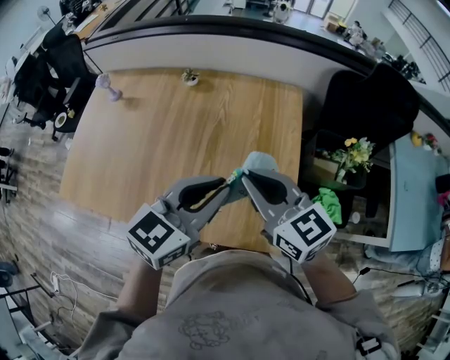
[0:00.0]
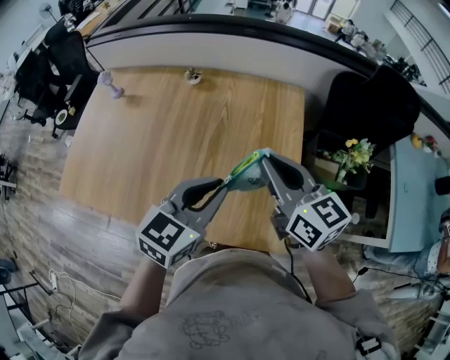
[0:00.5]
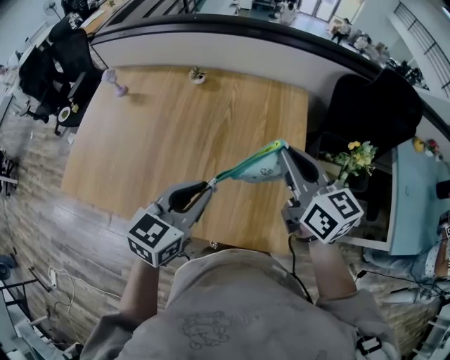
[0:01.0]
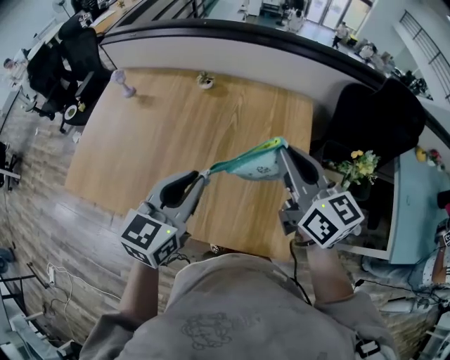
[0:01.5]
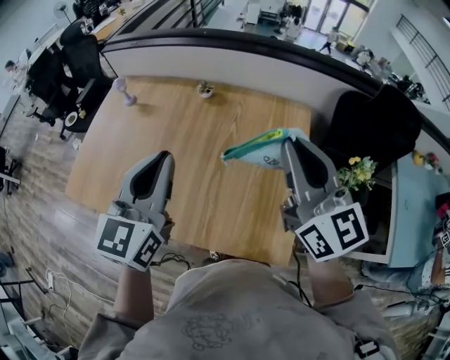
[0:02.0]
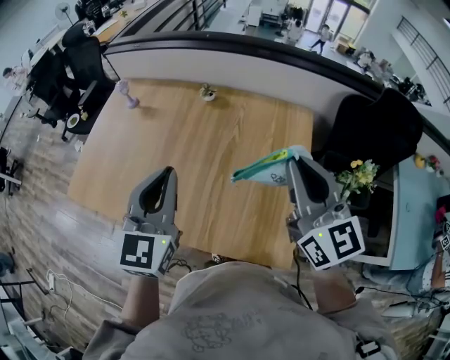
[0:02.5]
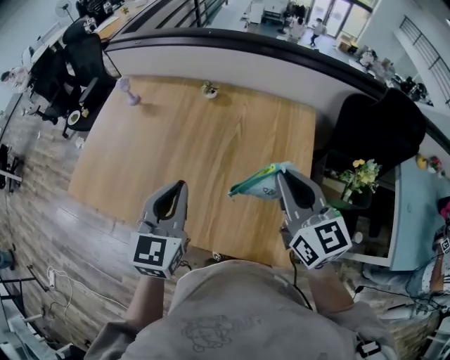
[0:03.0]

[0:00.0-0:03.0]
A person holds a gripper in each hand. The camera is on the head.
0:00.0 to 0:01.5: The right gripper moves forward, about 5 cm; the left gripper is displaced to the left by about 10 cm.
0:01.5 to 0:03.0: The right gripper goes upward and returns, approximately 10 cm each way. The left gripper travels to the left by approximately 5 cm, and goes upward and returns, some 10 cm each way.

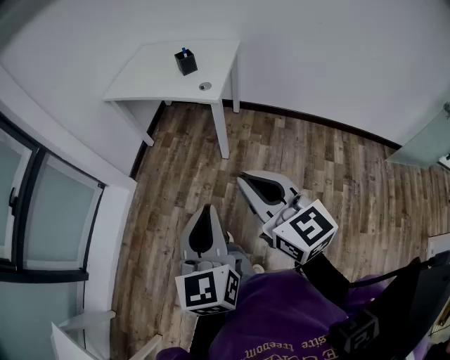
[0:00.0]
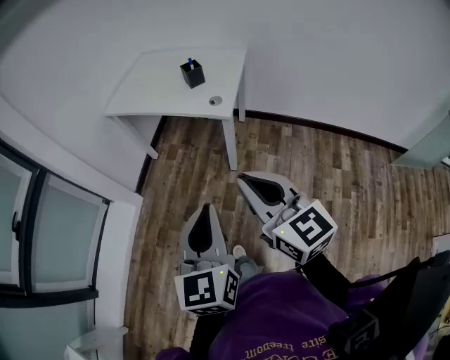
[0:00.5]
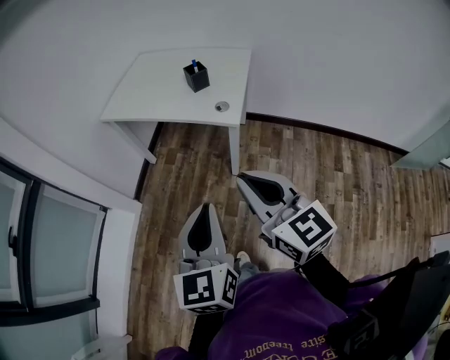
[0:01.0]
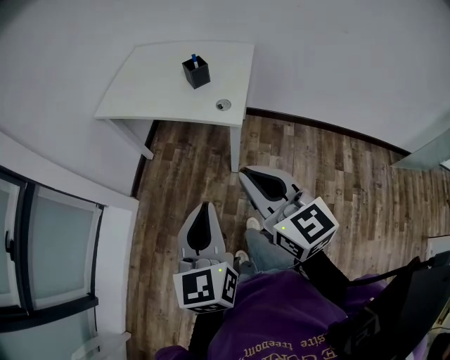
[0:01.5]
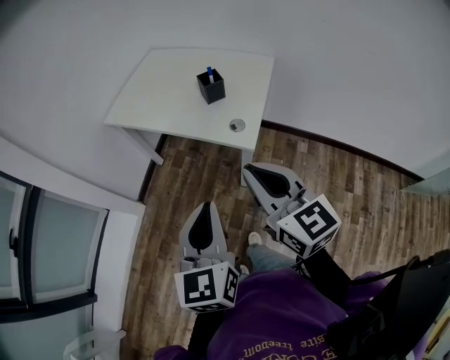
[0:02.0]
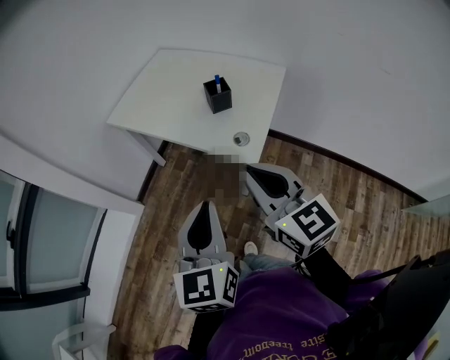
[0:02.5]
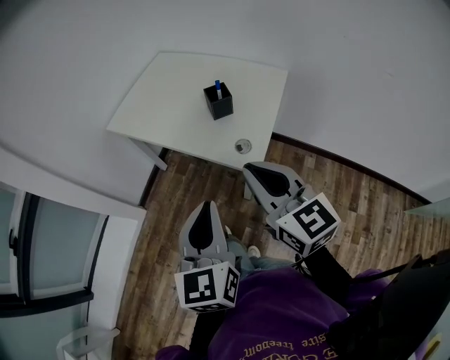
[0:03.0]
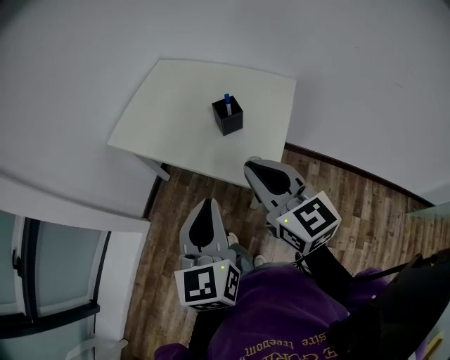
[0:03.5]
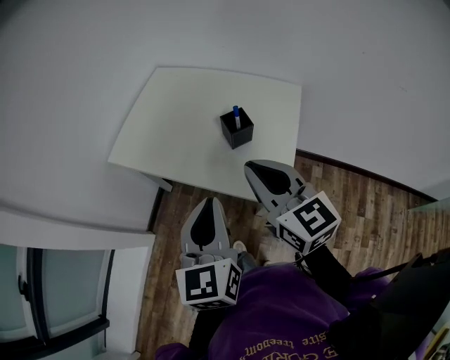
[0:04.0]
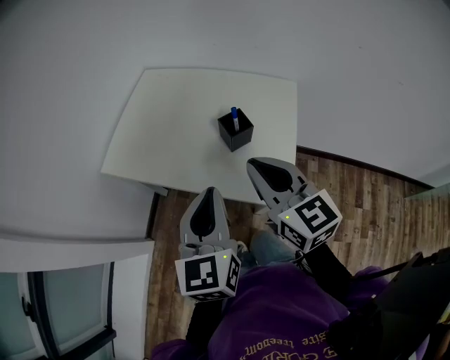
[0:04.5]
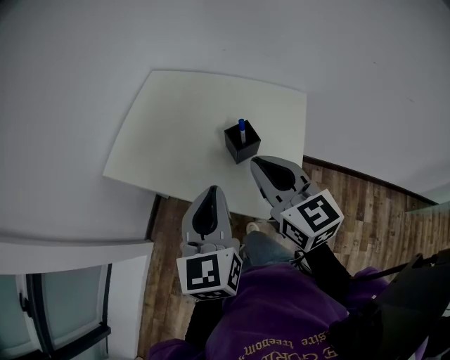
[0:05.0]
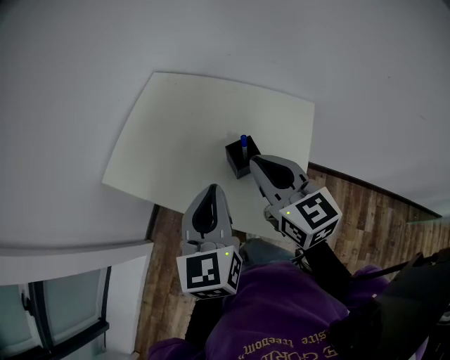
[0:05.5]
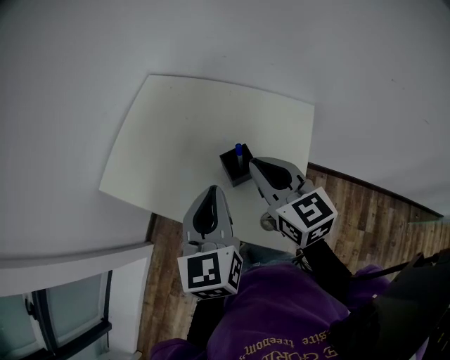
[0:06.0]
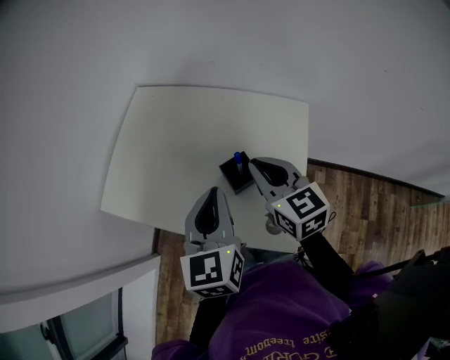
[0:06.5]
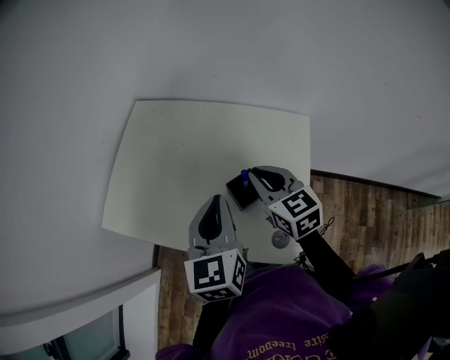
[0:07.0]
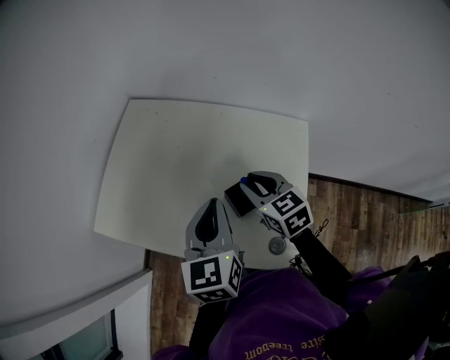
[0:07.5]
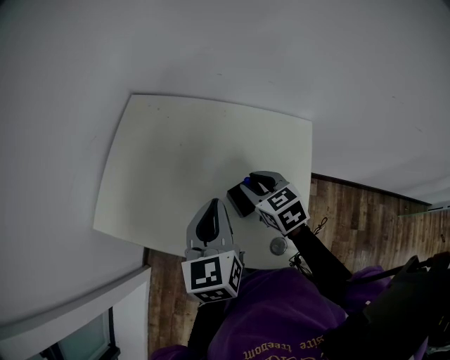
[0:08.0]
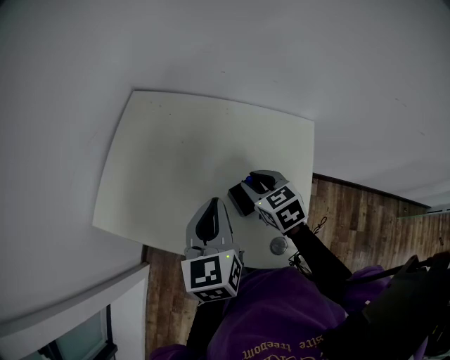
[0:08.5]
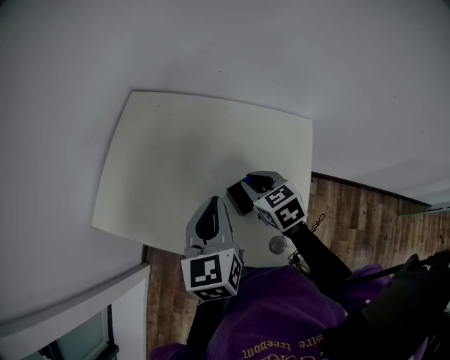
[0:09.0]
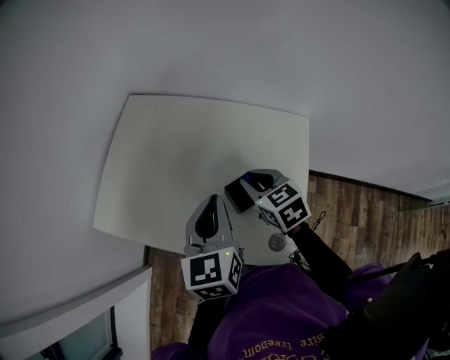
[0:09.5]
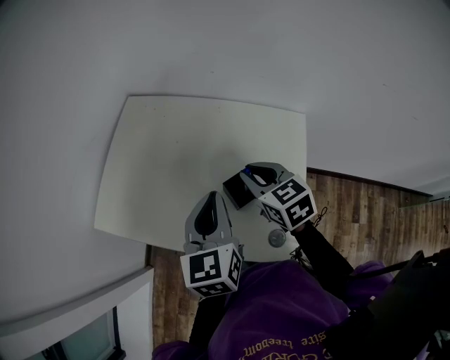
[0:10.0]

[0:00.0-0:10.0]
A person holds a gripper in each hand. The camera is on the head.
0:00.0 to 0:02.0: The grippers both shift forward by roughly 35 cm.
0:02.0 to 0:04.0: Both grippers move forward, roughly 25 cm.
0:04.0 to 0:06.0: Both grippers travel together forward, approximately 20 cm.
0:06.0 to 0:08.0: The left gripper moves forward and downward, approximately 10 cm. Meanwhile the right gripper travels downward and forward by approximately 15 cm, rotates about 30 degrees, and opens up.
0:08.0 to 0:10.0: The right gripper goes about 5 cm upward.

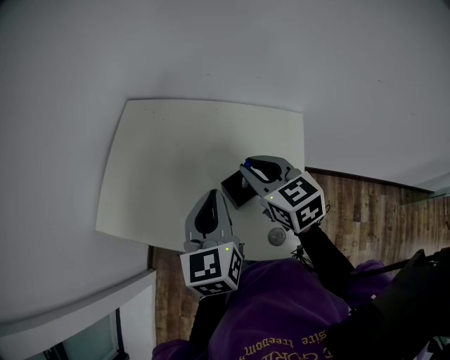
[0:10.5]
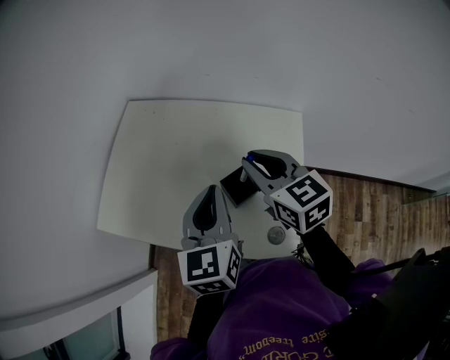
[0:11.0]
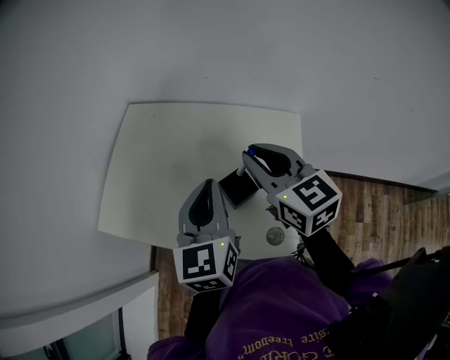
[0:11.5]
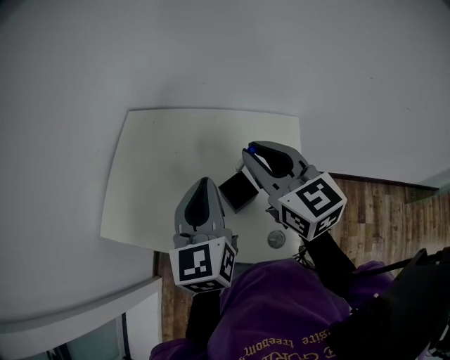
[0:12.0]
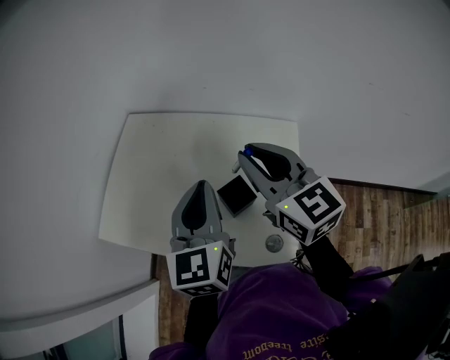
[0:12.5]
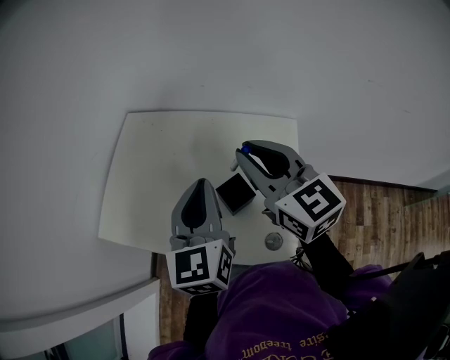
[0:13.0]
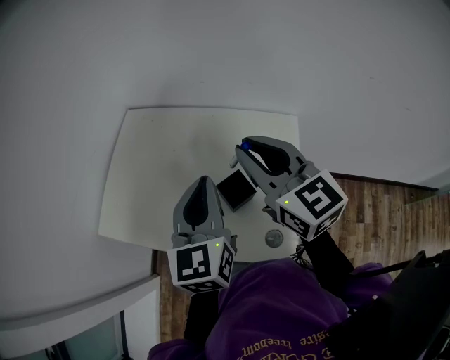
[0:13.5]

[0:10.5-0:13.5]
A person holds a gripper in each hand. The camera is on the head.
0:10.5 to 0:12.0: The right gripper travels upward by approximately 10 cm. The left gripper travels upward by roughly 5 cm.
0:12.0 to 0:13.5: The grippers move only a little.

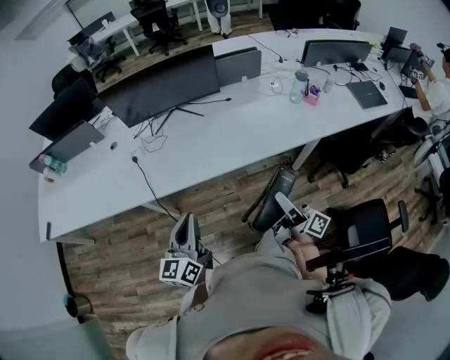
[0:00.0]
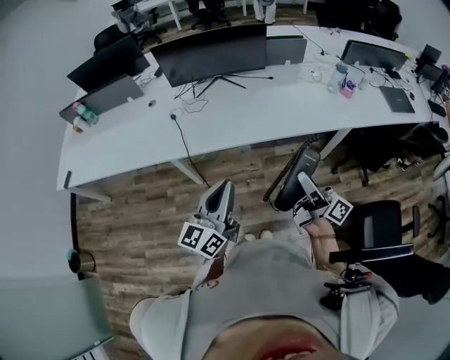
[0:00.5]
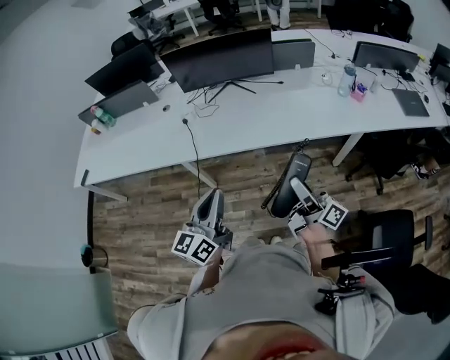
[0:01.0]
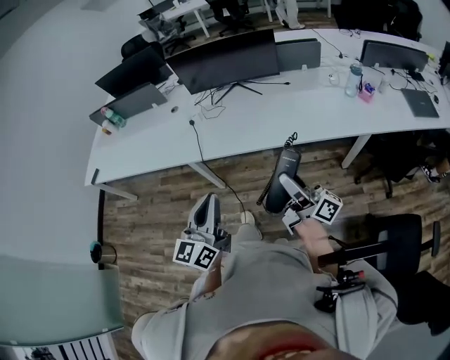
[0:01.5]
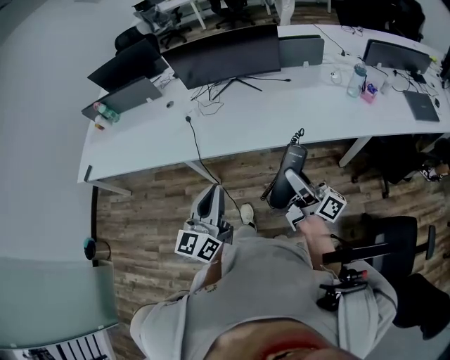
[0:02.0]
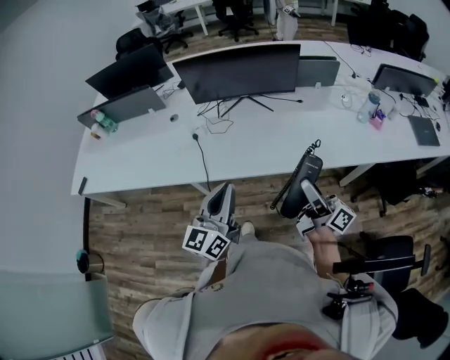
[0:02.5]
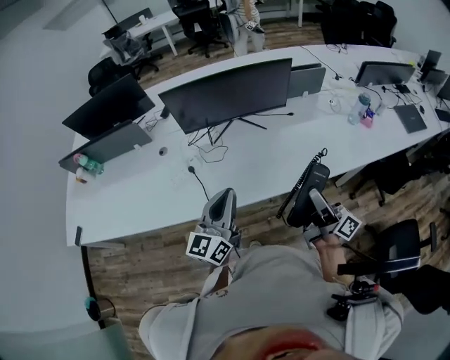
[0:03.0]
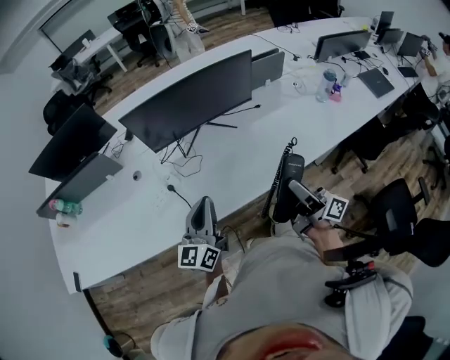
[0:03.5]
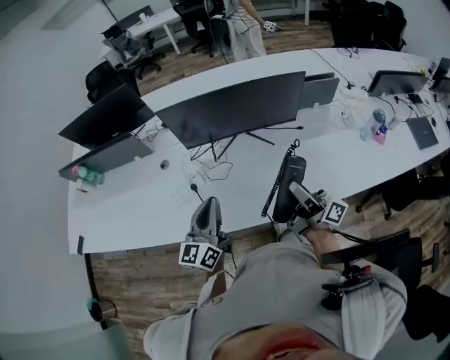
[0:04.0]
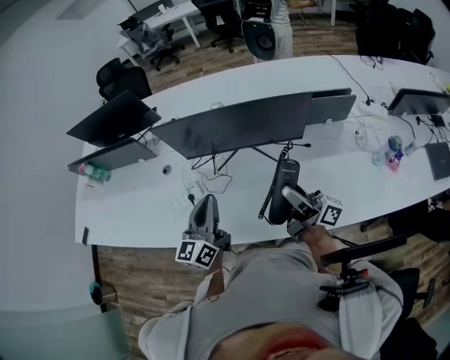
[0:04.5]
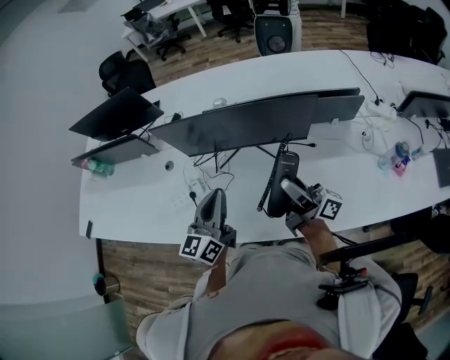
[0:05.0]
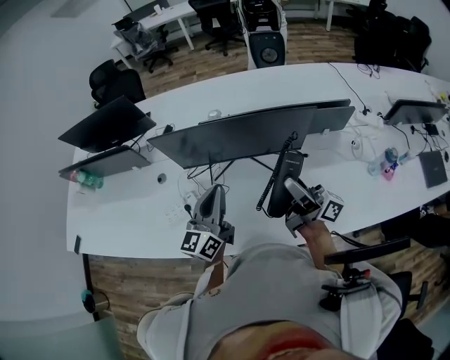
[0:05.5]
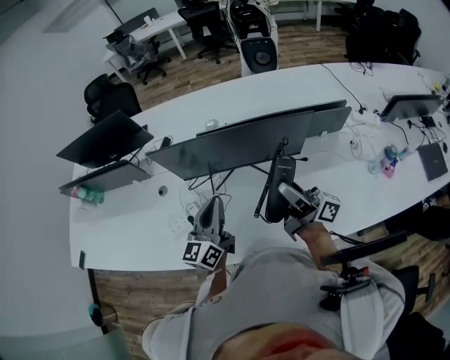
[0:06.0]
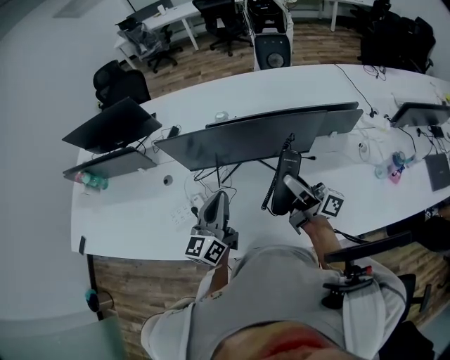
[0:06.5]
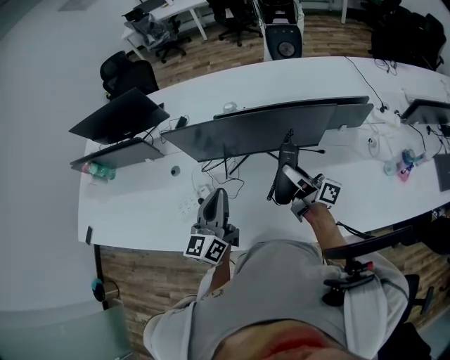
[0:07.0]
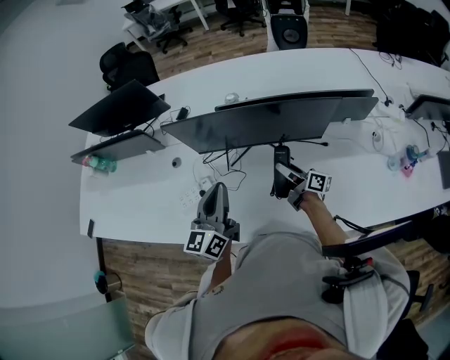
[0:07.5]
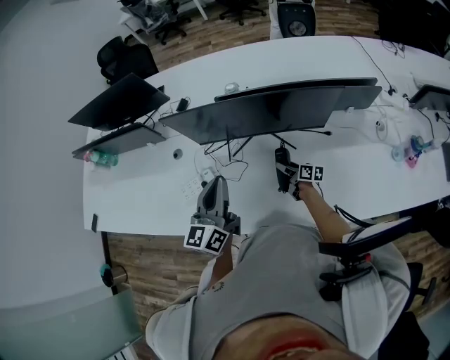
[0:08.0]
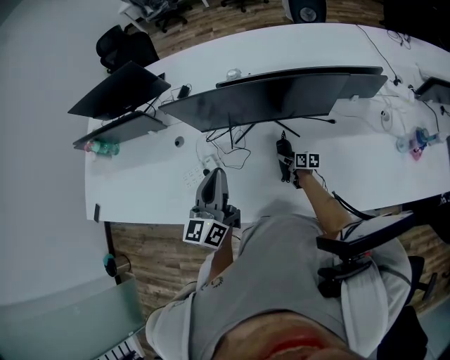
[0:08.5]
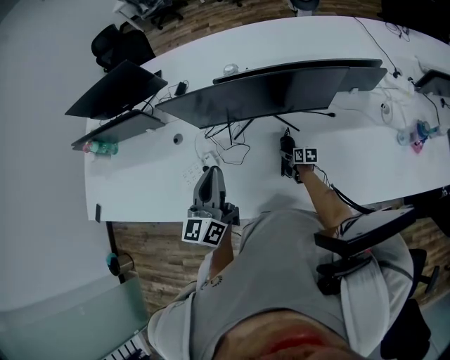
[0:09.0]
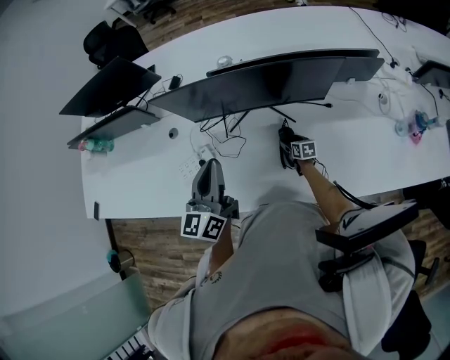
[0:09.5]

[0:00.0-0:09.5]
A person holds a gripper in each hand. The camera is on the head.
0:00.0 to 0:02.0: The left gripper is displaced backward and upward by some 10 cm, while the right gripper shifts approximately 10 cm to the left.
0:02.0 to 0:04.0: The two grippers go some 35 cm forward.
0:04.0 to 0:05.5: The two grippers go about 20 cm forward and to the right.
0:05.5 to 0:07.5: The right gripper heads downward, covering some 25 cm, and points its fingers about 30 degrees further downward.
0:07.5 to 0:09.5: The right gripper goes about 25 cm downward, and angles its fingers downward, by some 50 degrees.

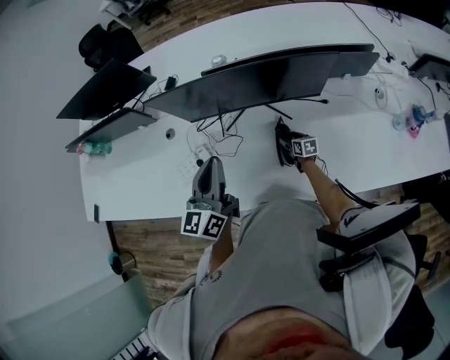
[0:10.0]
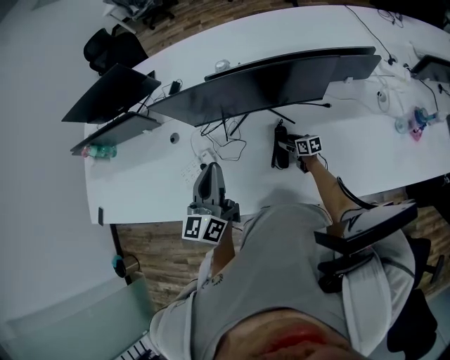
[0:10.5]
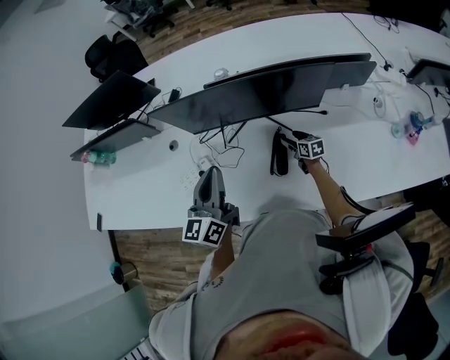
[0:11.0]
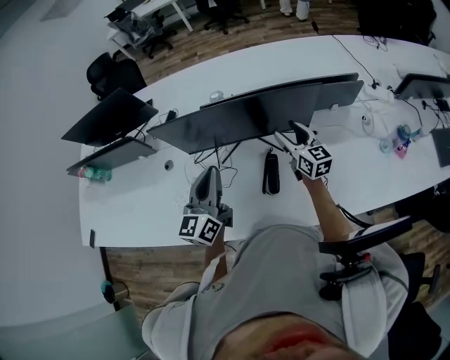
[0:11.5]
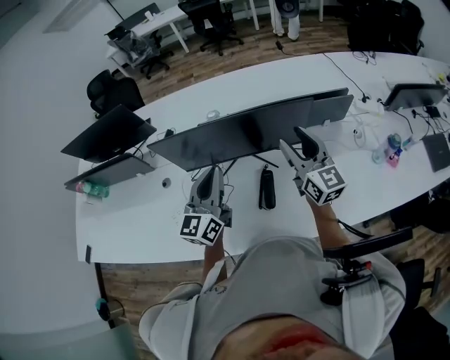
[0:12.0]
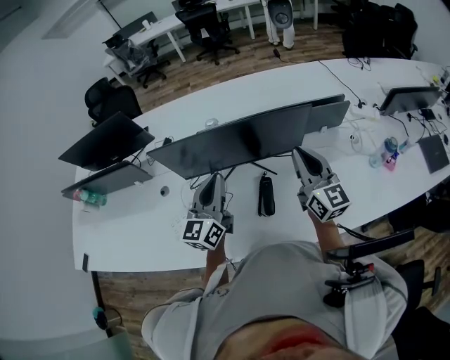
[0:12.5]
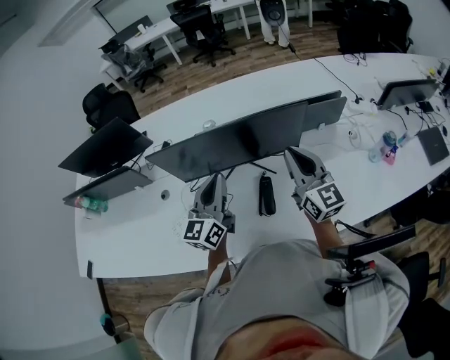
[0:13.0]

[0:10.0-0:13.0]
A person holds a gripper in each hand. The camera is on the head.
0:10.0 to 0:11.5: The right gripper moves upward, roughly 35 cm, and tilts its fingers roughly 40 degrees upward.
0:11.5 to 0:13.0: The right gripper goes some 20 cm upward and backward, rotates approximately 20 degrees, and closes up.
